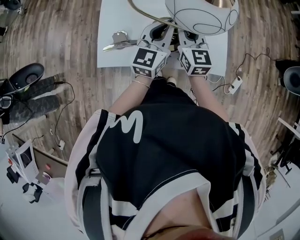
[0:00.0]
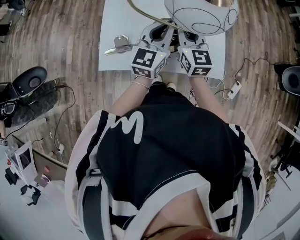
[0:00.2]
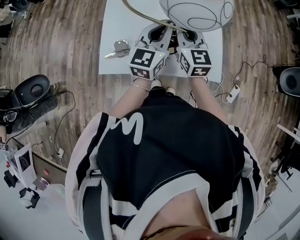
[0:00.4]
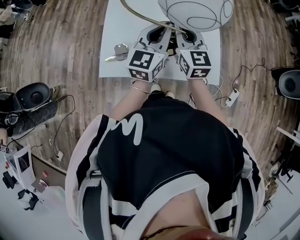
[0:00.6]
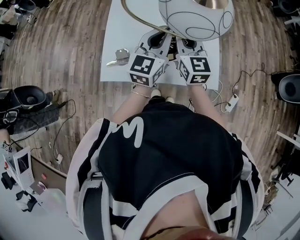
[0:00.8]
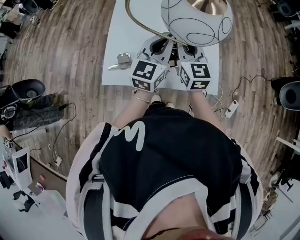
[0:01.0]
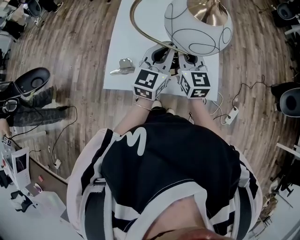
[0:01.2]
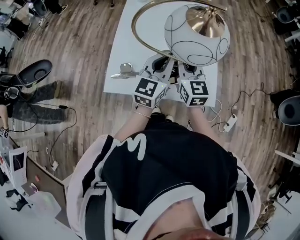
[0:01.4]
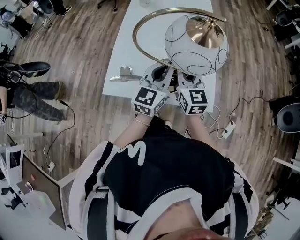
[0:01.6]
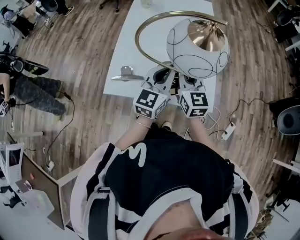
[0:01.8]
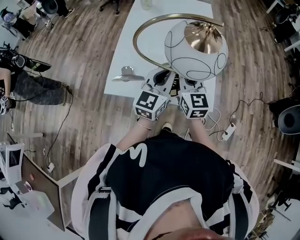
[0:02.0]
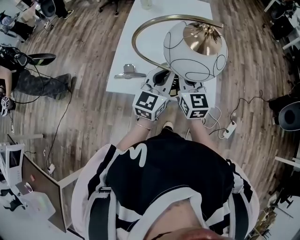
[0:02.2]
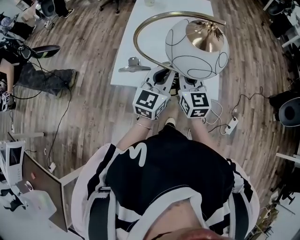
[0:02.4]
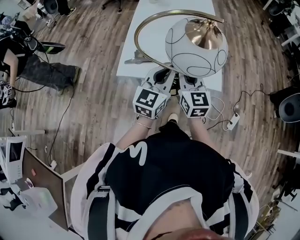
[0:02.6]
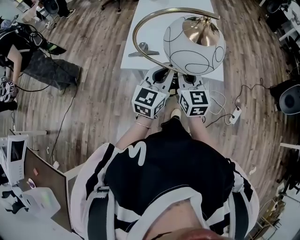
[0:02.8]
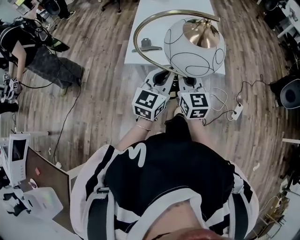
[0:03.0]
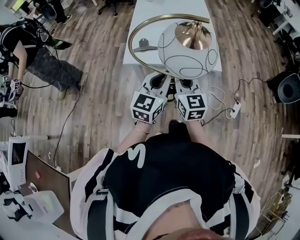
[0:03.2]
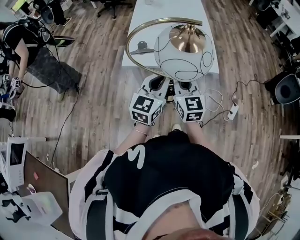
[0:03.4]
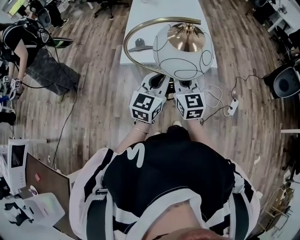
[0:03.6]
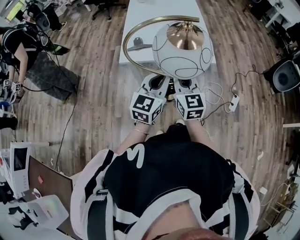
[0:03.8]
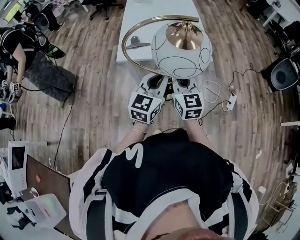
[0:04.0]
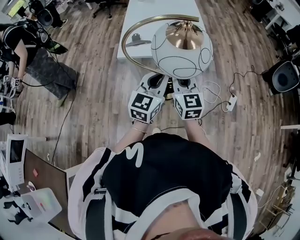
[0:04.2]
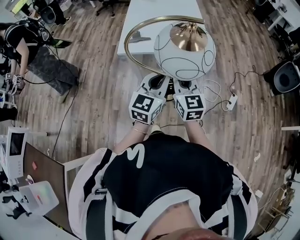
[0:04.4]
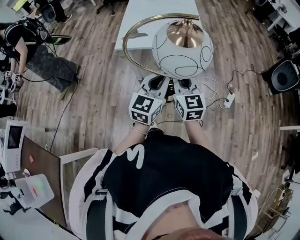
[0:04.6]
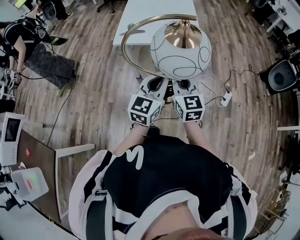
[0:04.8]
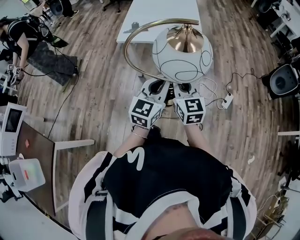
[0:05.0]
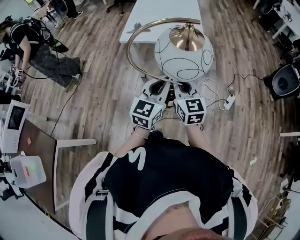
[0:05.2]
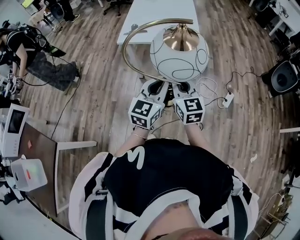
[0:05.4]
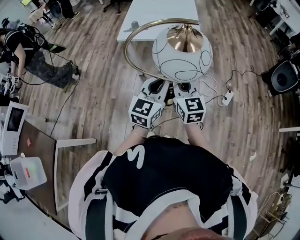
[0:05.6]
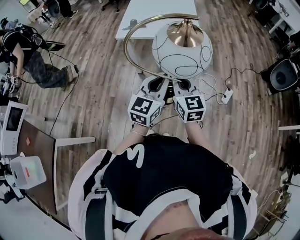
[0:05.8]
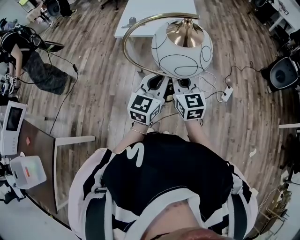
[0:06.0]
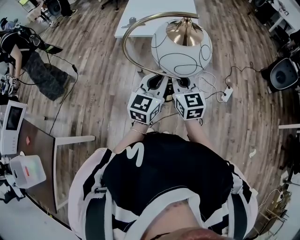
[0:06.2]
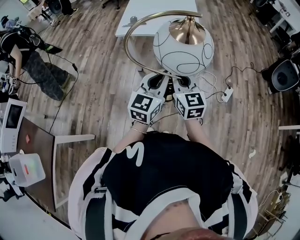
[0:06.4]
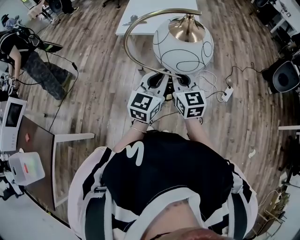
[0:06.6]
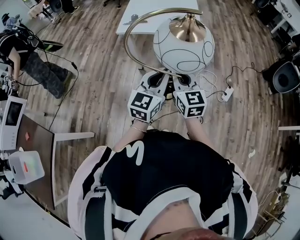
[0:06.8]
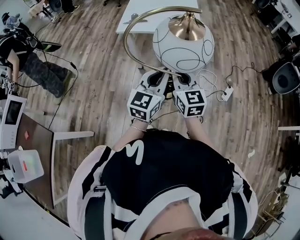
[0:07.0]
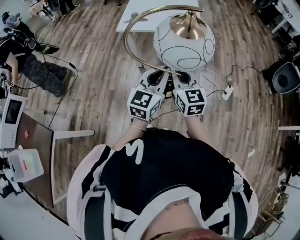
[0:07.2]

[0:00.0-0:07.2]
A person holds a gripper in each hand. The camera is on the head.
0:00.0 to 0:01.4: The two grippers go about 5 cm upward.
0:01.4 to 0:02.8: Both grippers travel together backward, roughly 20 cm.
0:02.8 to 0:04.4: The two grippers go about 15 cm backward.
0:04.4 to 0:05.8: Both grippers move backward and to the right, approximately 15 cm.
0:05.8 to 0:07.2: Neither gripper changes place.

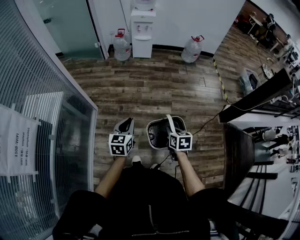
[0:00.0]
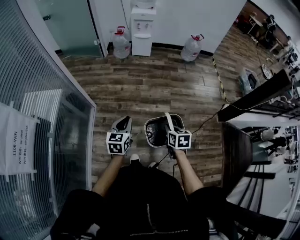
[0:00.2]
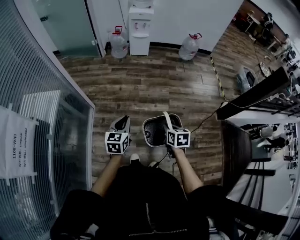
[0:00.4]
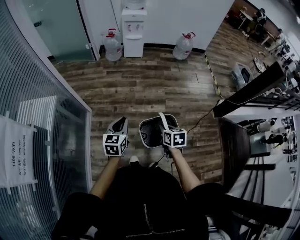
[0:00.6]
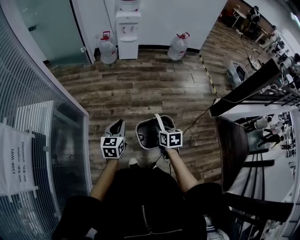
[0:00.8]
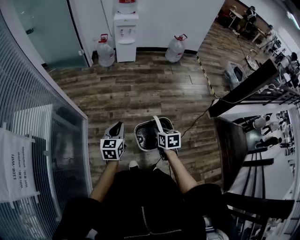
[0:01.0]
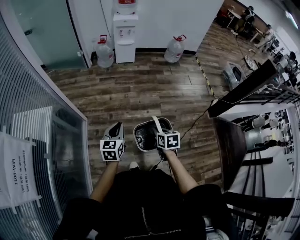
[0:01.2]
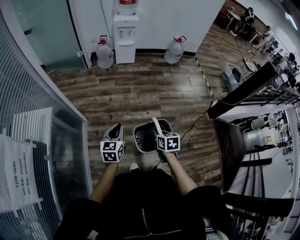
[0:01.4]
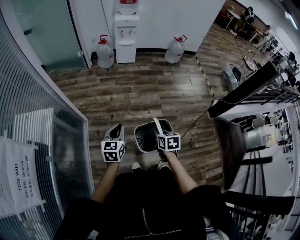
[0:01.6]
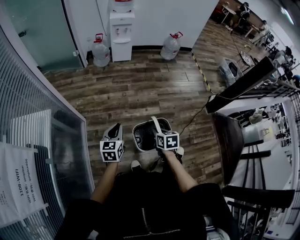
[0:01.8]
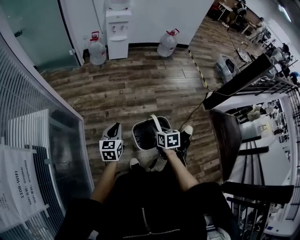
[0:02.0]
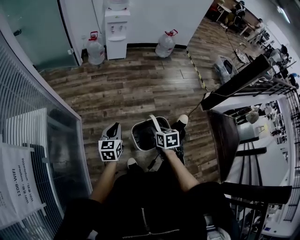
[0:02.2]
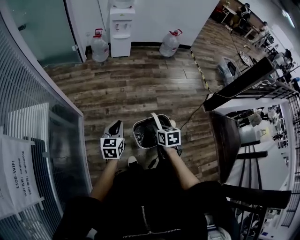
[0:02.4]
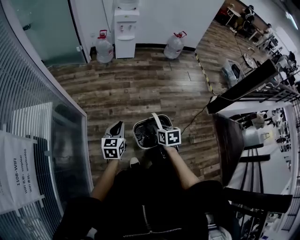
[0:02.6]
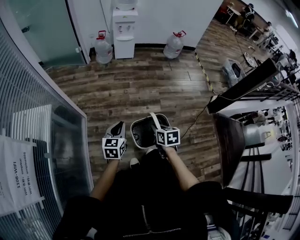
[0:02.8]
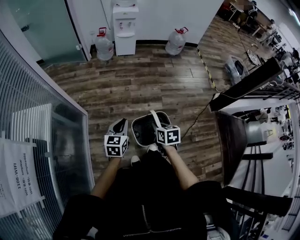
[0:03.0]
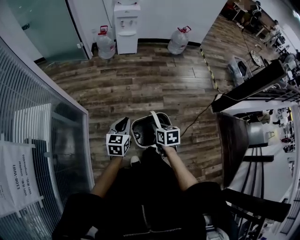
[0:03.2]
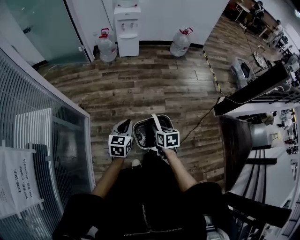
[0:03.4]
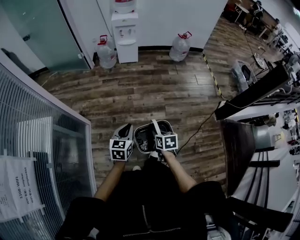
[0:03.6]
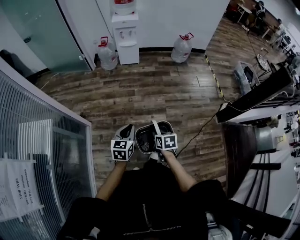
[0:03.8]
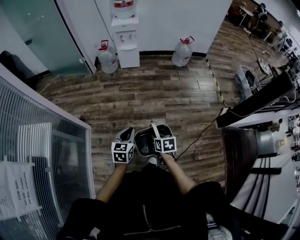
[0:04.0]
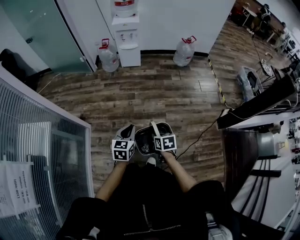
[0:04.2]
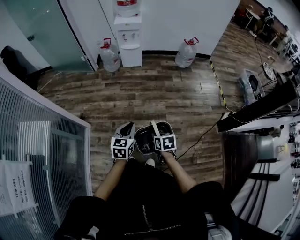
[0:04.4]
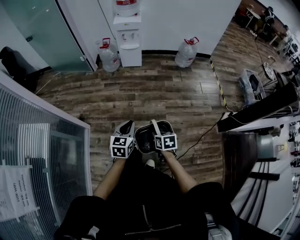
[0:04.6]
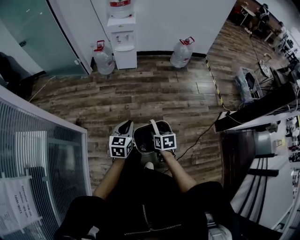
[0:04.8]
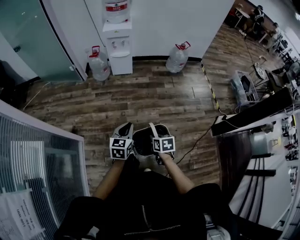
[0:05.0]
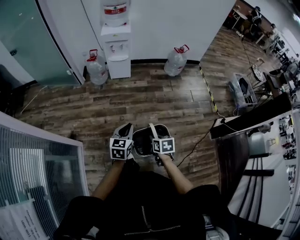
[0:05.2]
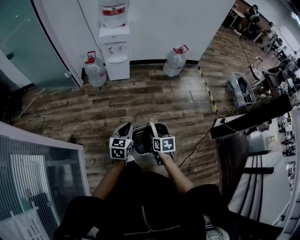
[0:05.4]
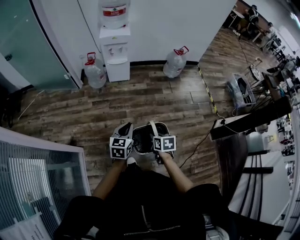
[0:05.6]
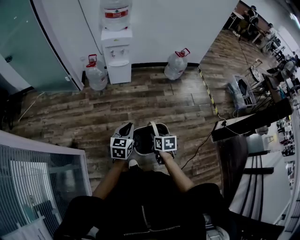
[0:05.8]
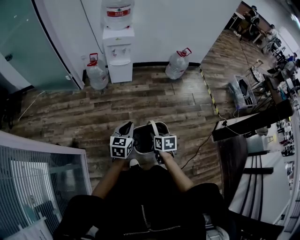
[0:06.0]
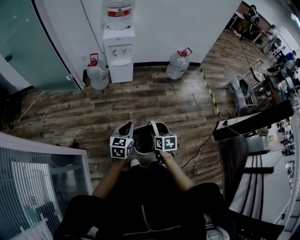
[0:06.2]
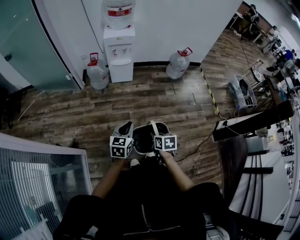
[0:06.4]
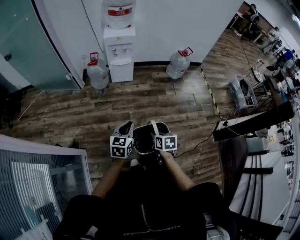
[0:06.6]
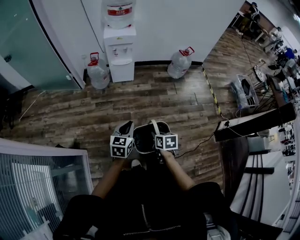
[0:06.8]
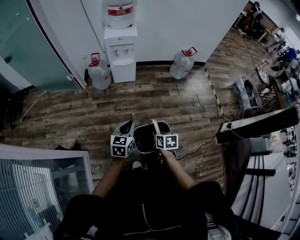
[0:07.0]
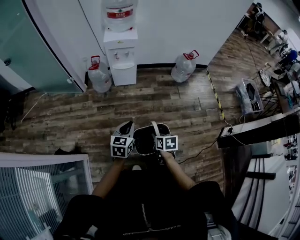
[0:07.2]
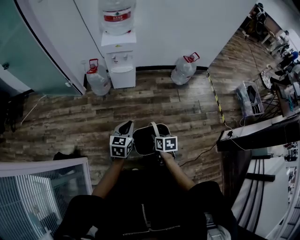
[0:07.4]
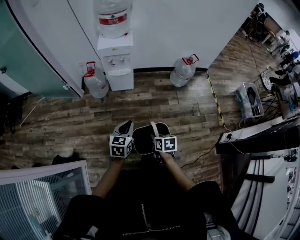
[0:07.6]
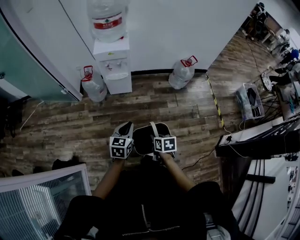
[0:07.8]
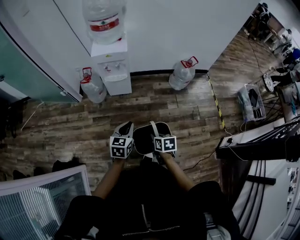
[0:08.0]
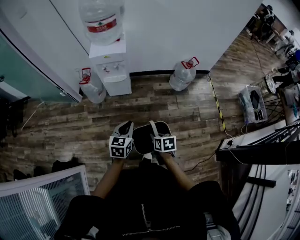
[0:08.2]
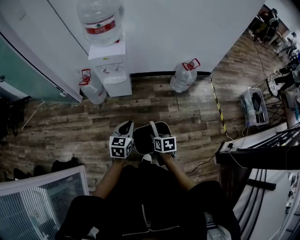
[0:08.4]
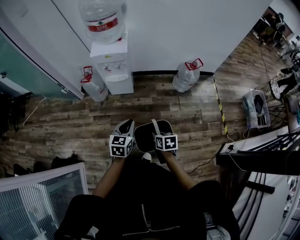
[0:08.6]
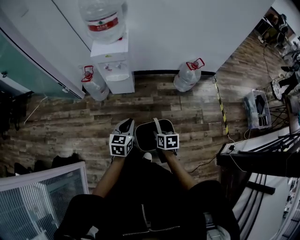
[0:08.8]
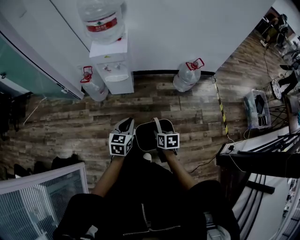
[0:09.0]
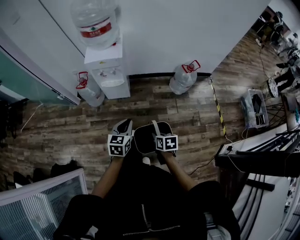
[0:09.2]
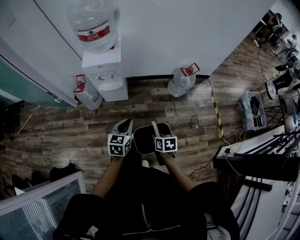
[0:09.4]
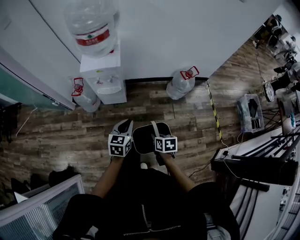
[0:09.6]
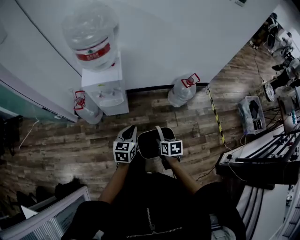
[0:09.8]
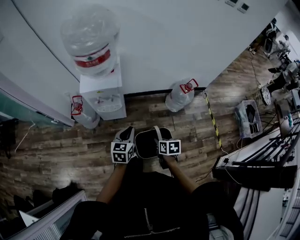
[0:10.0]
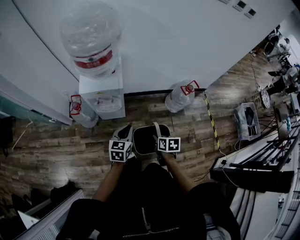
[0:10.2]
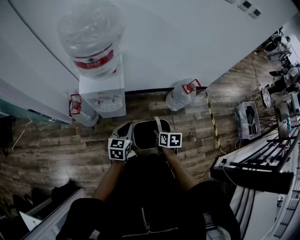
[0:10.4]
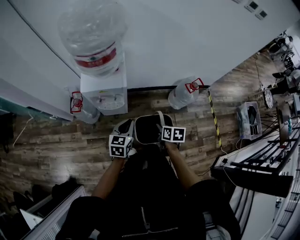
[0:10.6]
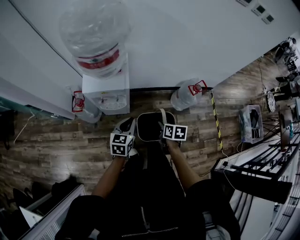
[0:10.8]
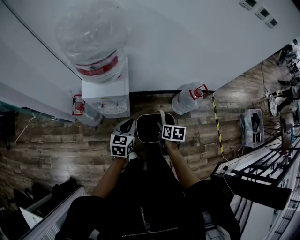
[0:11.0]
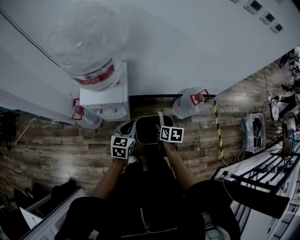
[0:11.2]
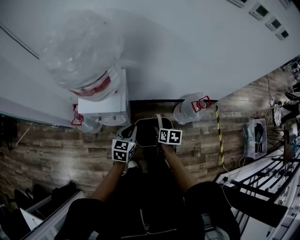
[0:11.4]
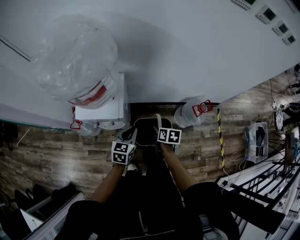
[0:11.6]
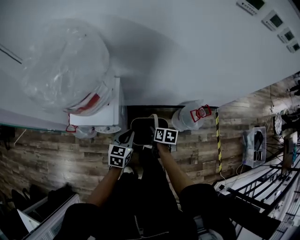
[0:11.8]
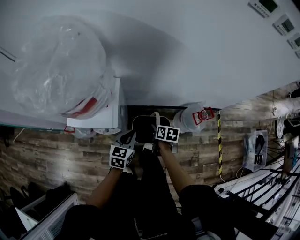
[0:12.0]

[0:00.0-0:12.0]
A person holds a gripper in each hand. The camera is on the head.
0:00.0 to 0:01.6: The grippers both shift to the left by some 10 cm.
0:01.6 to 0:03.0: The grippers make only small movements.
0:03.0 to 0:04.4: The left gripper goes about 20 cm to the right and forward. The right gripper goes approximately 15 cm forward and to the right.
0:04.4 to 0:06.0: The two grippers go approximately 25 cm forward.
0:06.0 to 0:07.6: The two grippers go about 20 cm forward.
0:07.6 to 0:09.0: The two grippers go some 15 cm forward and to the right.
0:09.0 to 0:10.4: The grippers both shift forward by about 25 cm.
0:10.4 to 0:12.0: The right gripper goes roughly 30 cm forward; the left gripper travels forward and to the right by about 20 cm.

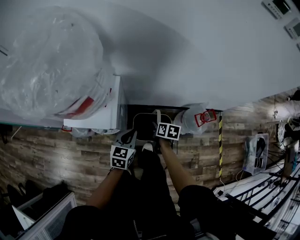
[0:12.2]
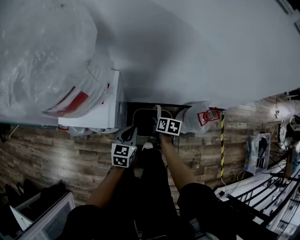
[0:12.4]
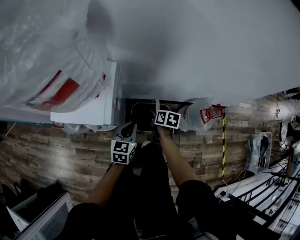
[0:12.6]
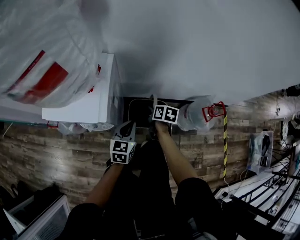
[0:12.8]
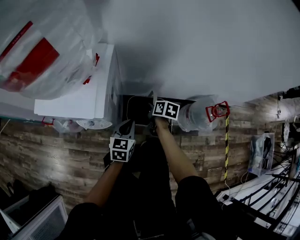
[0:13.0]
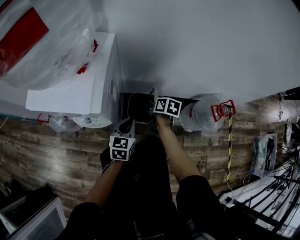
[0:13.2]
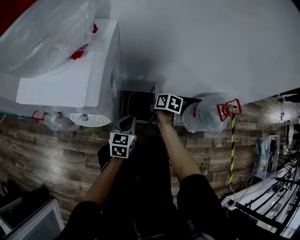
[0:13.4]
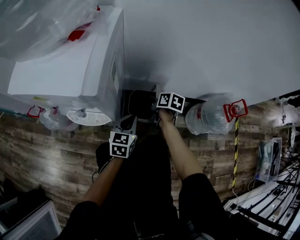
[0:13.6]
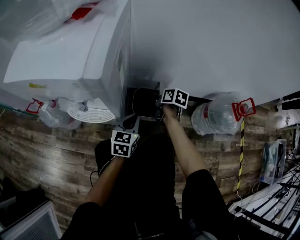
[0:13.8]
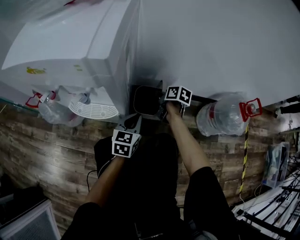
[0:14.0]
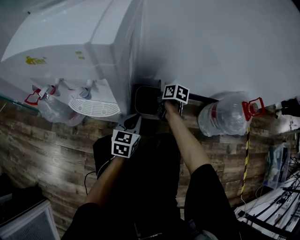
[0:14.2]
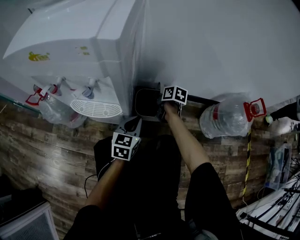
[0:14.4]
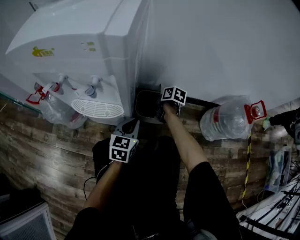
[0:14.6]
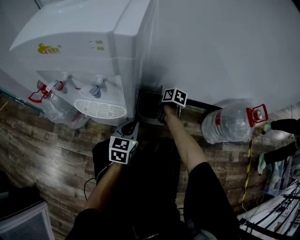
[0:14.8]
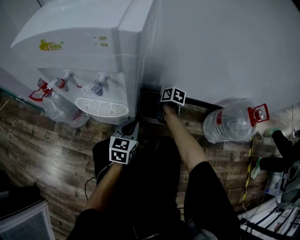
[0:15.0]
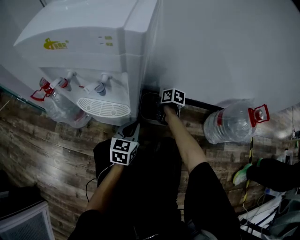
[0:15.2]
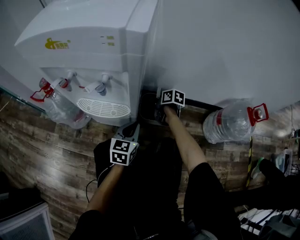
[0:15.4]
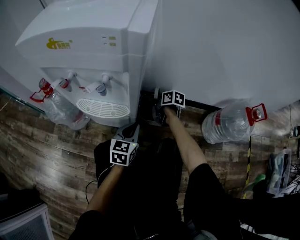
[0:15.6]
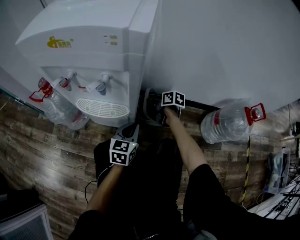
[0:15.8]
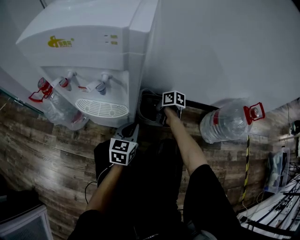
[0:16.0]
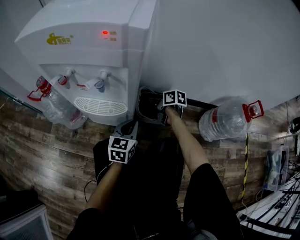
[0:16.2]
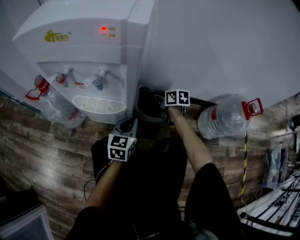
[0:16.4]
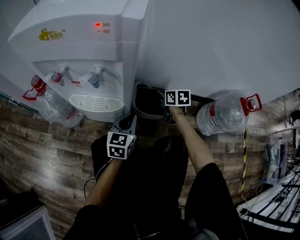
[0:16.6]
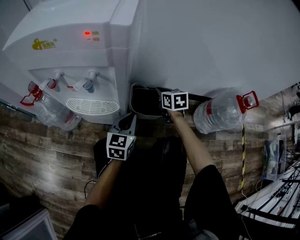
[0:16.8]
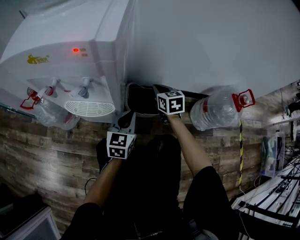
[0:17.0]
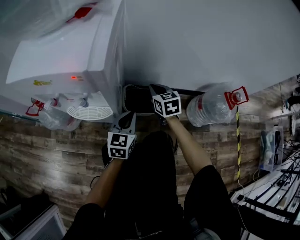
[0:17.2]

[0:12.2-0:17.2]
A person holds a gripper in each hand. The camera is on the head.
0:12.2 to 0:13.8: Both grippers move downward, about 35 cm.
0:13.8 to 0:15.6: The left gripper travels to the left and downward by roughly 10 cm. The right gripper is displaced downward and to the left by about 10 cm, and opens its fingers.
0:15.6 to 0:17.2: The left gripper is displaced upward and to the right by roughly 10 cm. Meanwhile the right gripper is displaced upward by some 20 cm, swivels roughly 40 degrees, and closes up.
